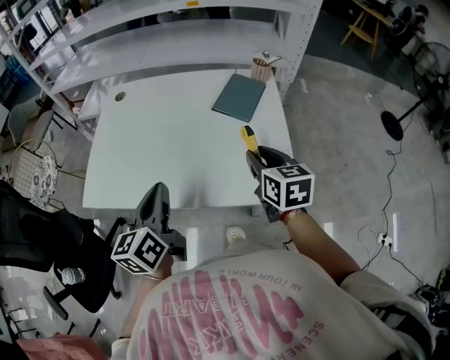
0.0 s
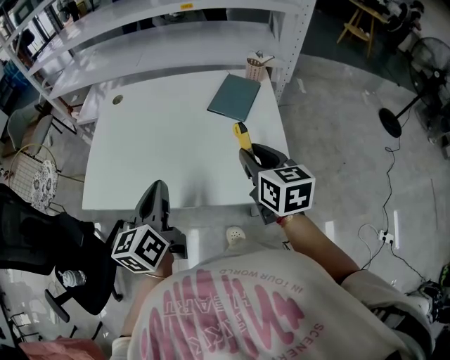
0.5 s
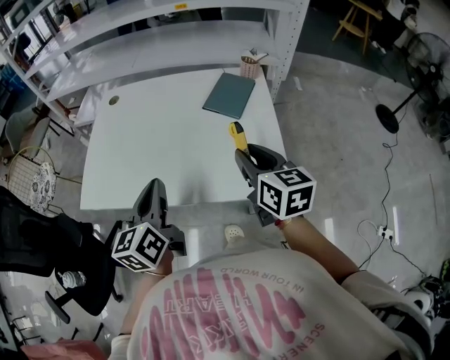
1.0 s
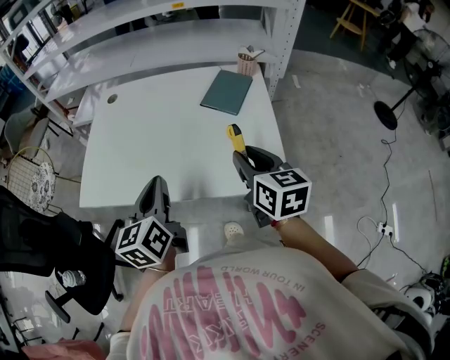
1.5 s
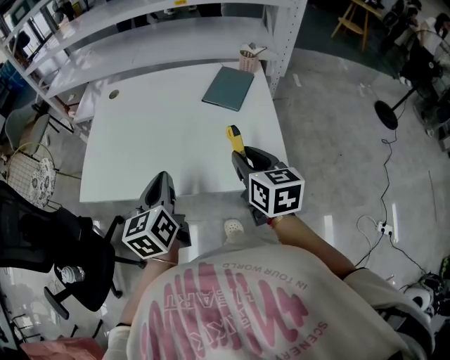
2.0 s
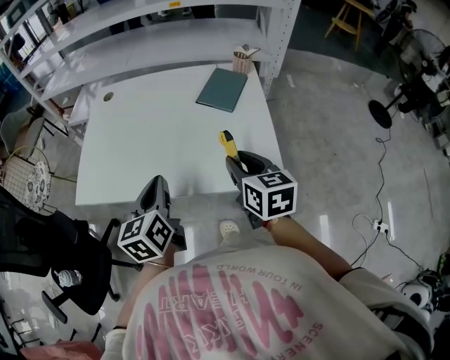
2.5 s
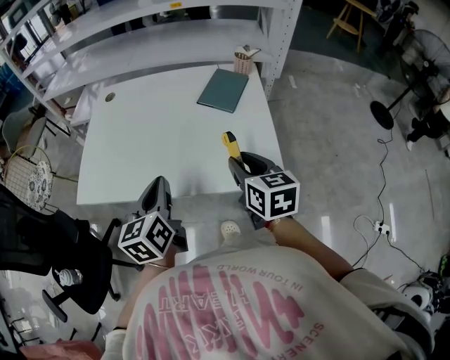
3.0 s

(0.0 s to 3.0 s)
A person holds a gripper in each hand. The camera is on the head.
0.0 s - 1.5 s: The right gripper ends up approximately 5 cm from where it was.
1.5 s - 3.0 s: The grippers stay close to where they were, moving slightly.

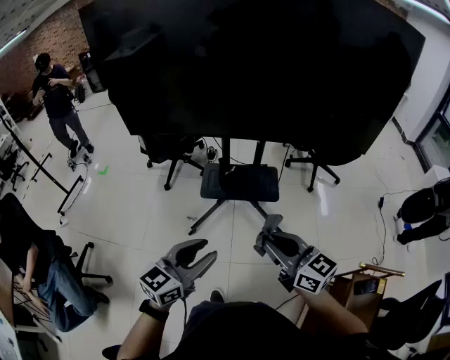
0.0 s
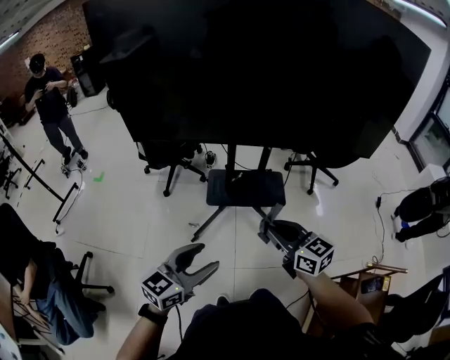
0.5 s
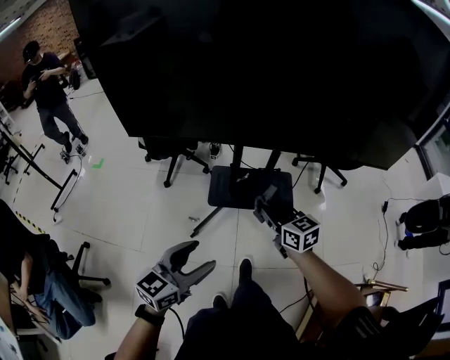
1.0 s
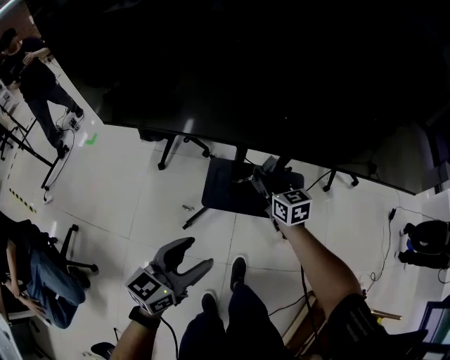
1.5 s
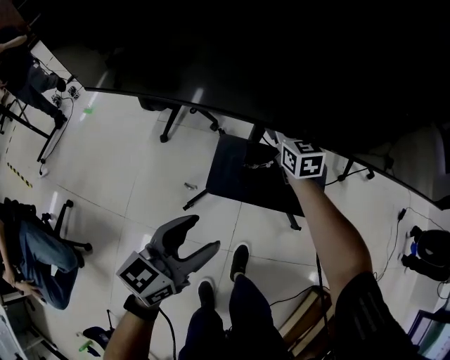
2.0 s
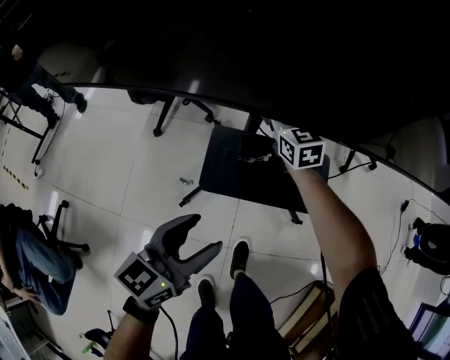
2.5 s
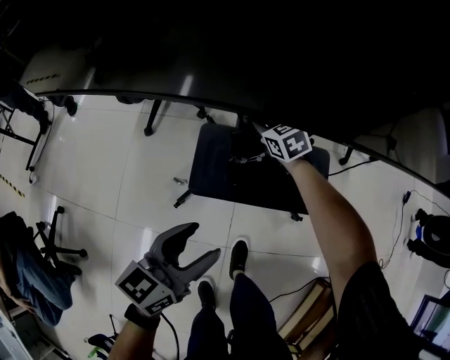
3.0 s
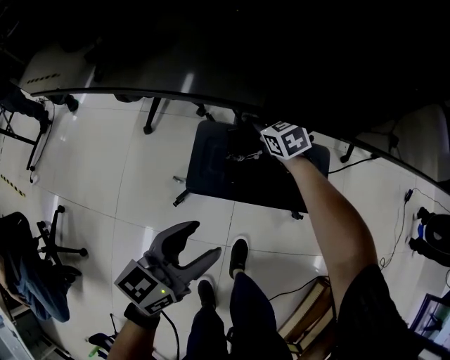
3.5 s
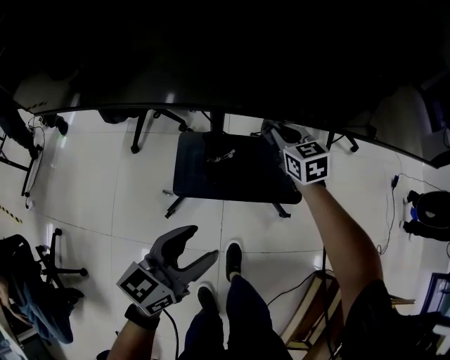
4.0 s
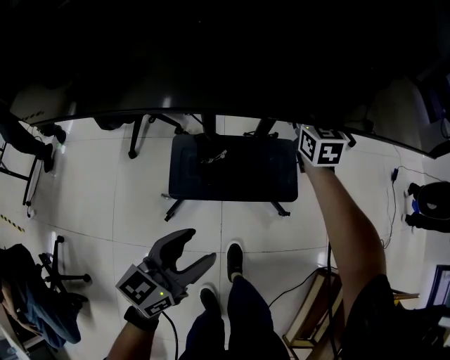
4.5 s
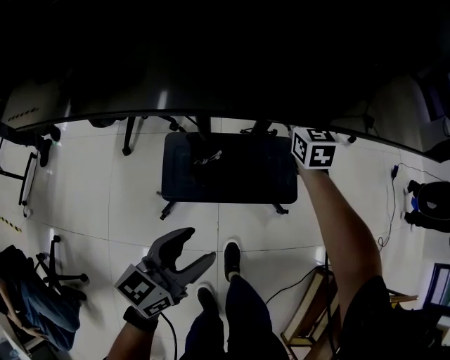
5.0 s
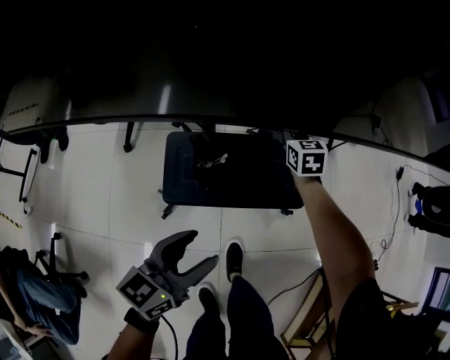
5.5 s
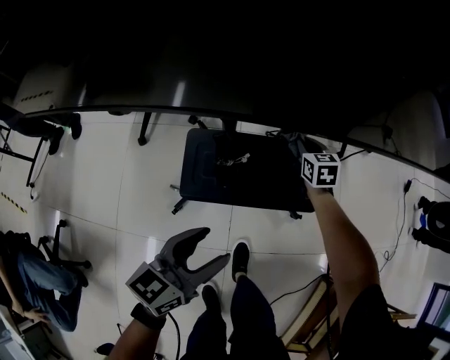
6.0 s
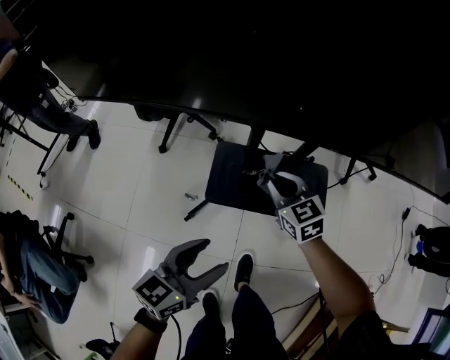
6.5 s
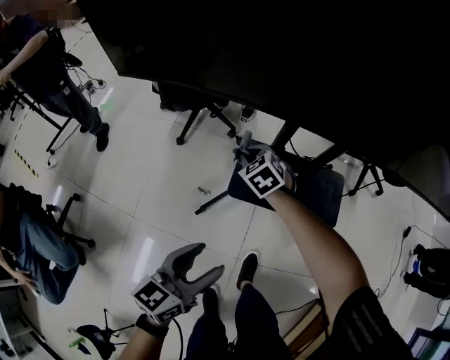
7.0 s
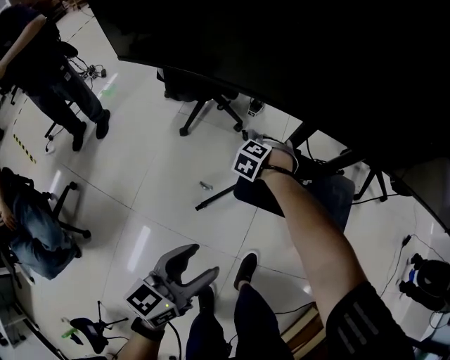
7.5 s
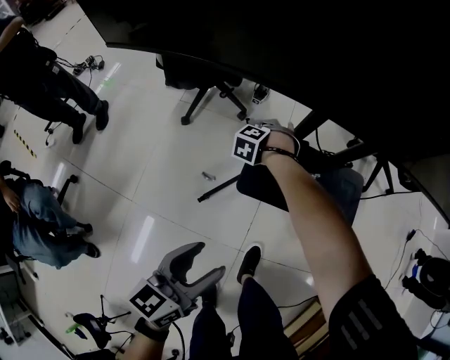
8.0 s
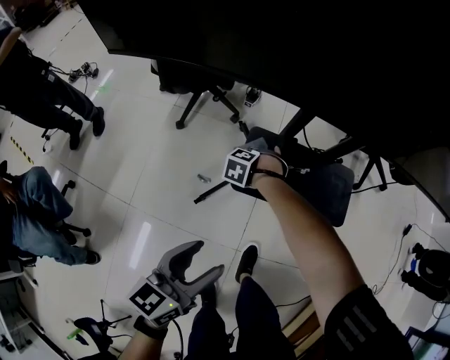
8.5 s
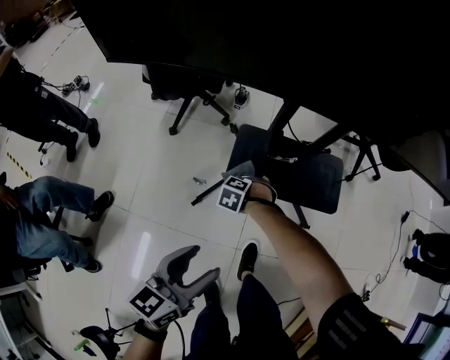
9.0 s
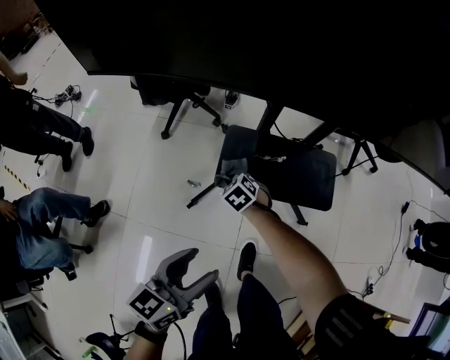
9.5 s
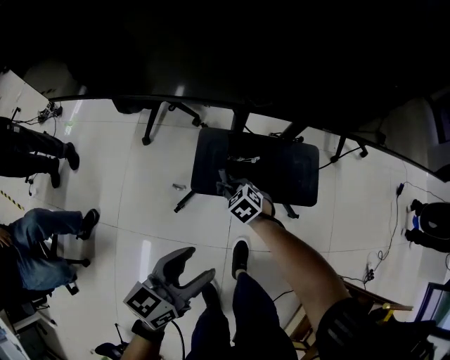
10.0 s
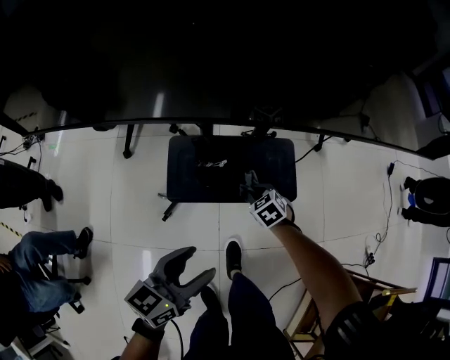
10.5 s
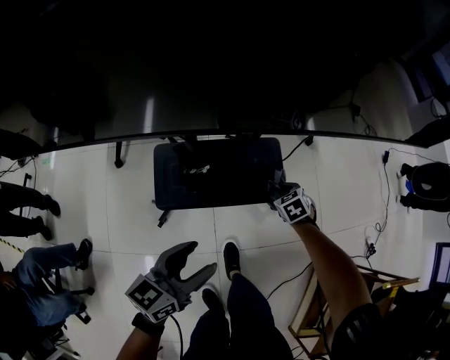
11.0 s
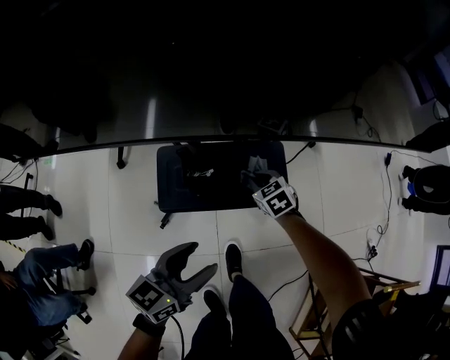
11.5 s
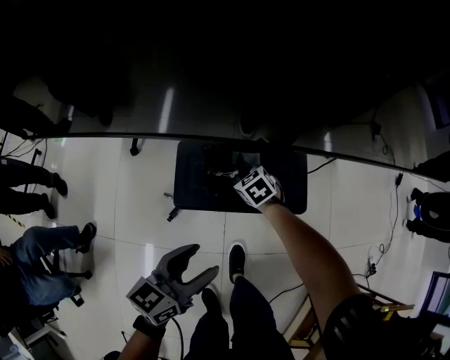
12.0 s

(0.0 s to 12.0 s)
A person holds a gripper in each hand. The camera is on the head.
0.0 s - 2.0 s: The left gripper shifts roughly 35 cm forward and downward, and opens; the right gripper shifts some 70 cm forward and downward, and rotates approximately 30 degrees.
2.0 s - 4.0 s: The right gripper moves to the right, some 15 cm, and goes downward and returns, approximately 15 cm each way. The left gripper travels to the right and downward by roughly 10 cm.
4.0 s - 6.0 s: The right gripper travels downward, to the right and forward by some 15 cm; the left gripper moves some 5 cm.
6.0 s - 8.0 s: The right gripper goes roughly 35 cm to the left, and twists some 80 degrees counterclockwise, seen from behind, while the left gripper shifts some 15 cm to the left and backward, and turns by some 20 degrees.
8.0 s - 10.0 s: The left gripper changes place by approximately 10 cm. The right gripper moves roughly 20 cm, and rotates around the line of its fingers by about 40 degrees, clockwise from behind.
10.0 s - 12.0 s: The left gripper goes about 5 cm forward. Meanwhile the right gripper is displaced forward by about 10 cm, and travels to the right and back again, about 30 cm each way.

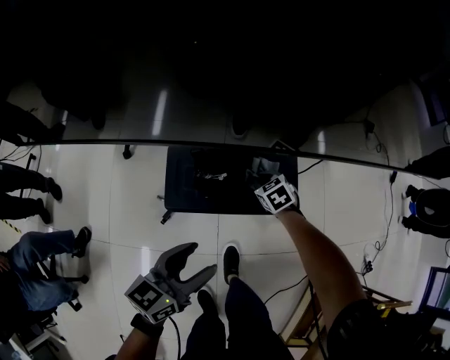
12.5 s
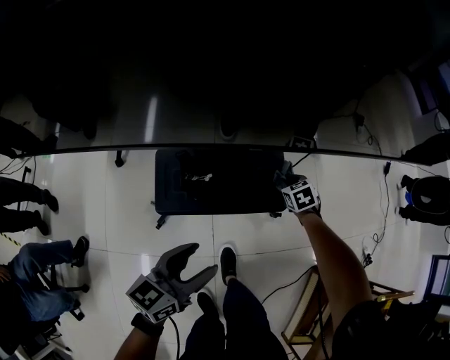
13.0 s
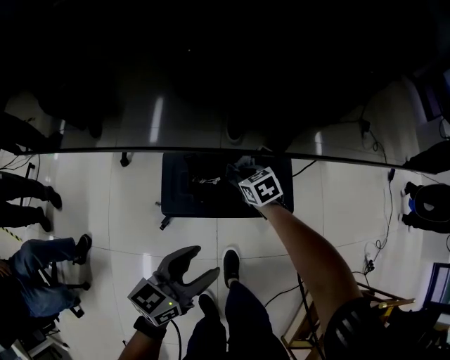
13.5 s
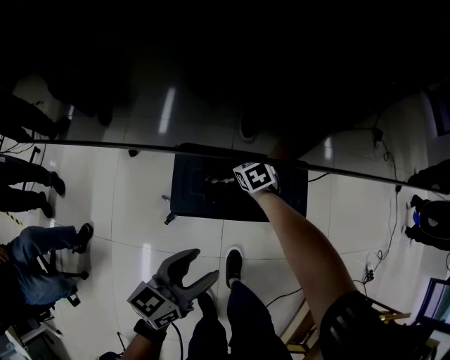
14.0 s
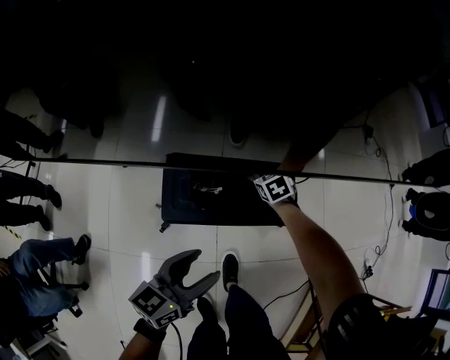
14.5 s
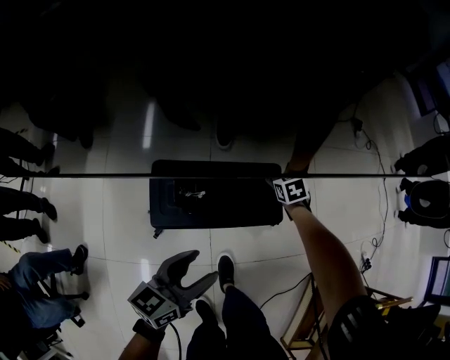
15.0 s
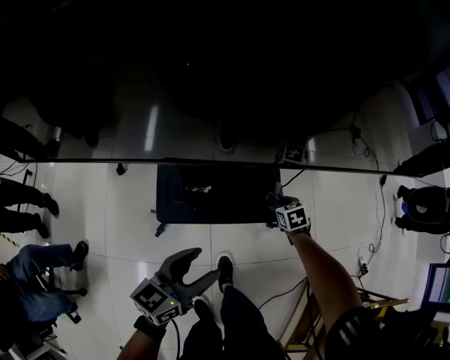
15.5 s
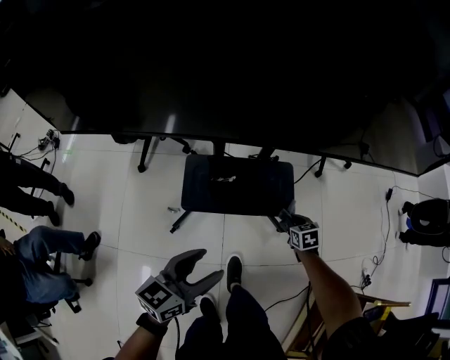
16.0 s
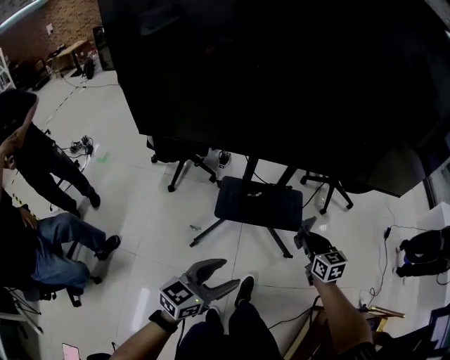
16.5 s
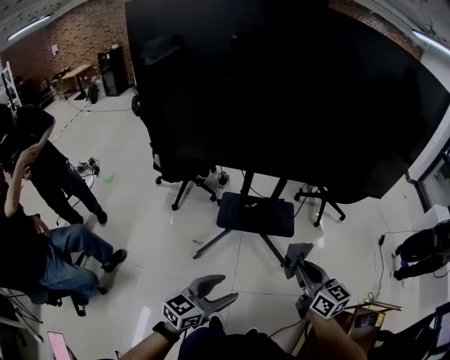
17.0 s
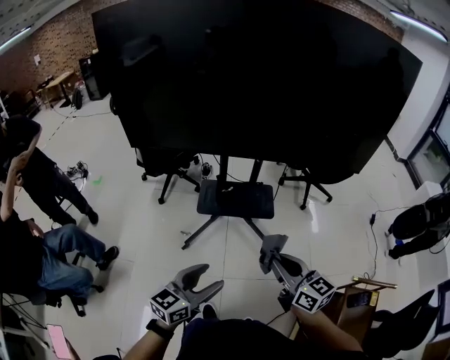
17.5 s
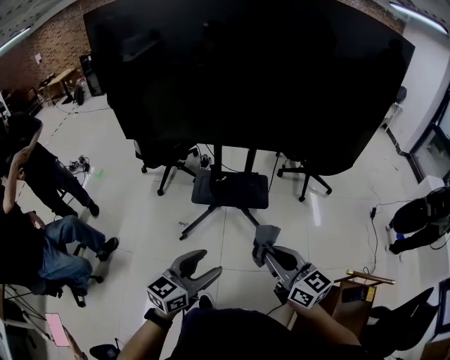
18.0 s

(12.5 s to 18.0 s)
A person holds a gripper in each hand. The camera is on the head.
12.5 s - 14.5 s: The right gripper swings left and right, approximately 25 cm each way, with 2 reversals.
14.5 s - 16.0 s: The left gripper heads backward and upward, covering approximately 10 cm, while the right gripper travels backward and to the right by some 25 cm.
16.0 s - 18.0 s: The left gripper goes about 35 cm backward and upward. Meanwhile the right gripper heads upward and backward, covering approximately 60 cm, and angles its fingers upward, by approximately 50 degrees.

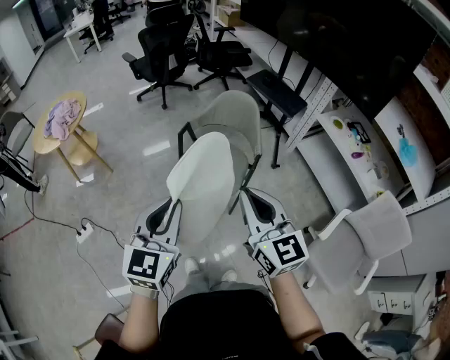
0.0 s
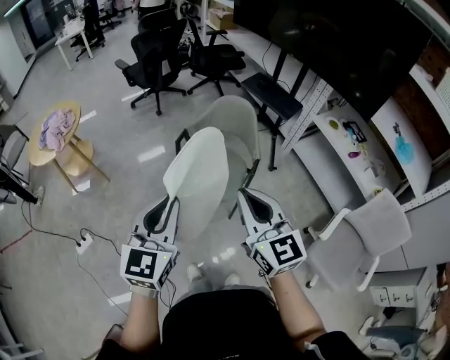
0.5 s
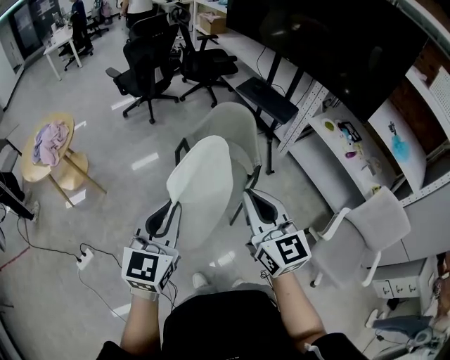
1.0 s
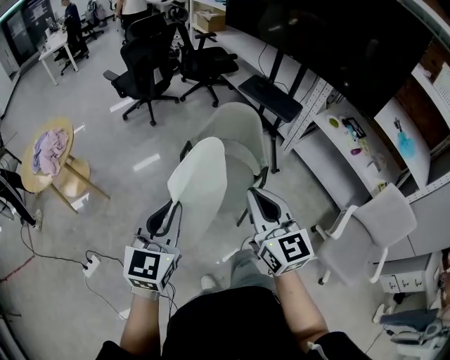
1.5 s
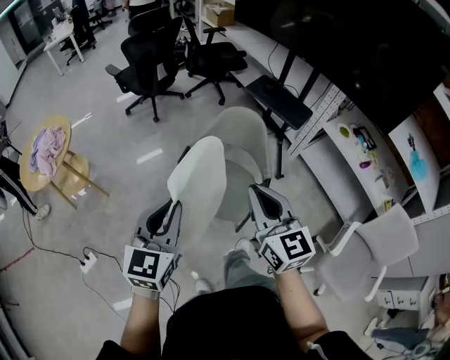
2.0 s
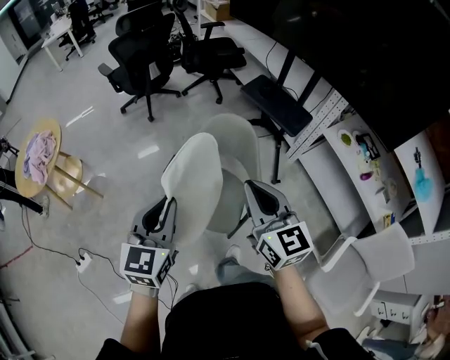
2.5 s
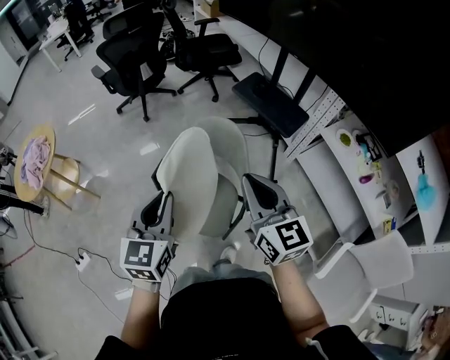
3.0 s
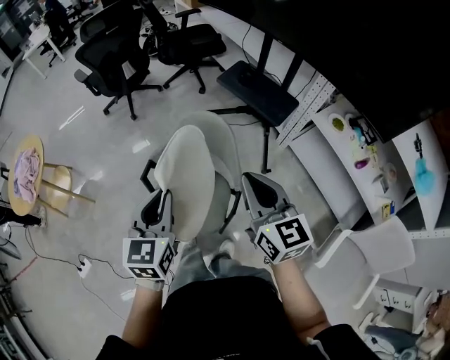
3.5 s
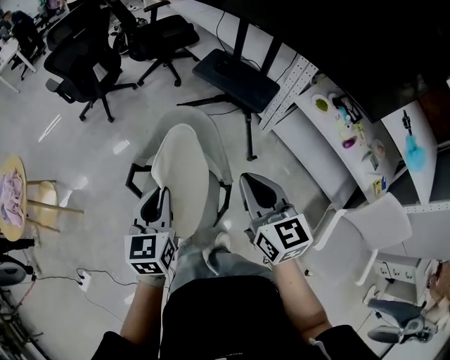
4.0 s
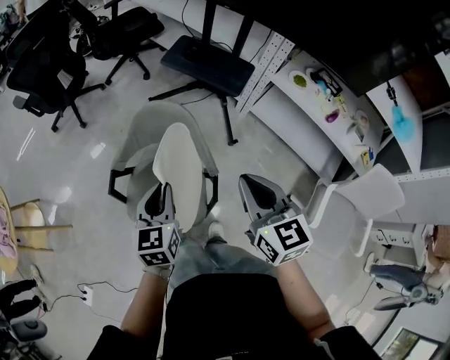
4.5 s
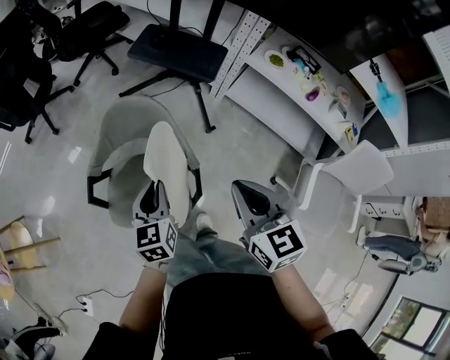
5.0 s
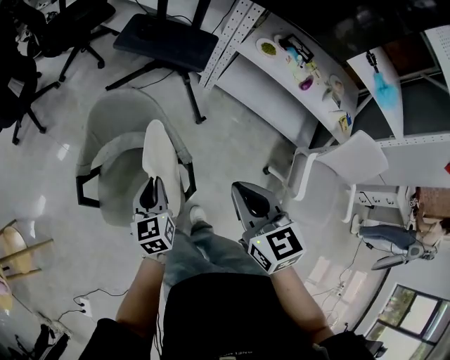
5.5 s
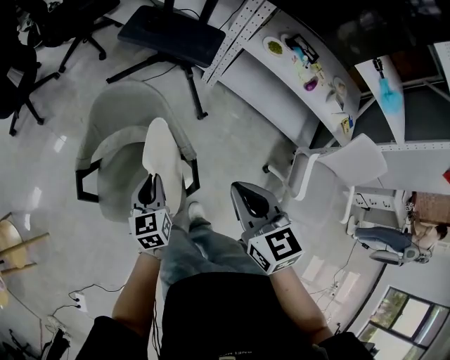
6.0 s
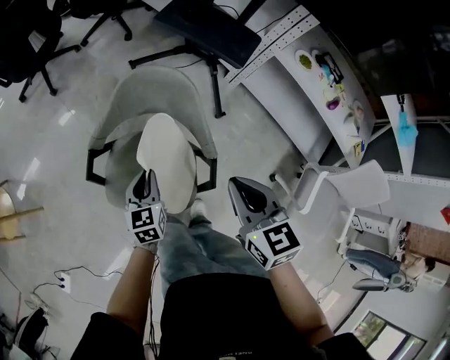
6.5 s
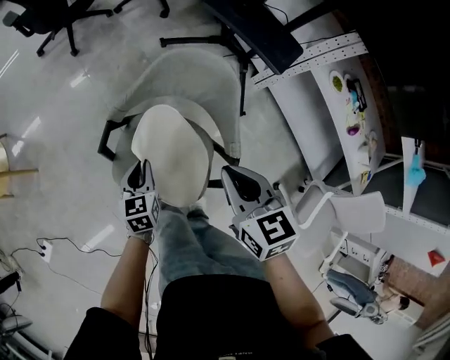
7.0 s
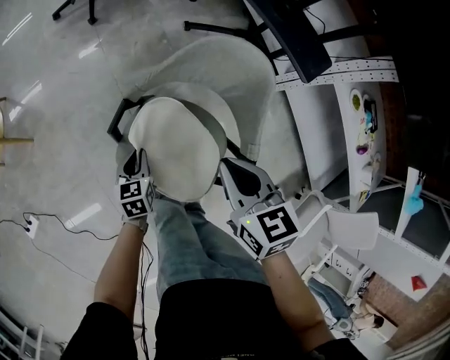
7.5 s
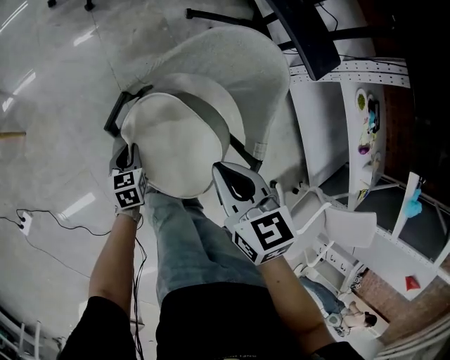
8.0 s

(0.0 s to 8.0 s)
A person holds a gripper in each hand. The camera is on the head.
0.0 s - 2.0 s: The grippers both shift forward by about 20 cm.
2.0 s - 4.0 s: The right gripper goes approximately 25 cm to the right and forward; the left gripper goes approximately 30 cm forward, to the right and downward.
4.0 s - 6.0 s: The right gripper shifts roughly 10 cm downward, and changes its angle by approximately 20 degrees. Meanwhile the left gripper shifts approximately 25 cm downward.
6.0 s - 8.0 s: The right gripper shifts by roughly 30 cm, and rotates about 30 degrees, while the left gripper changes place by about 35 cm, and turns by roughly 30 degrees.
